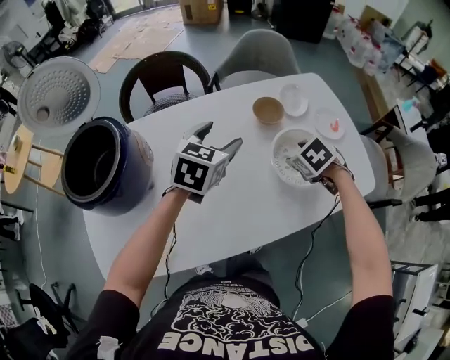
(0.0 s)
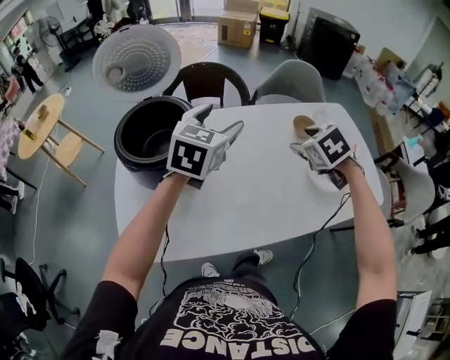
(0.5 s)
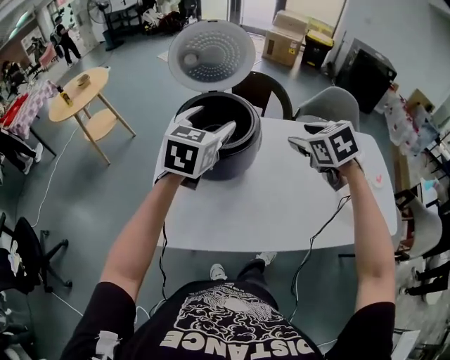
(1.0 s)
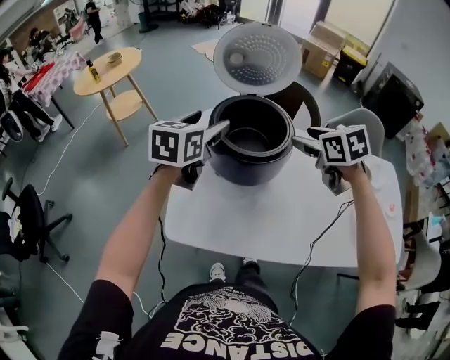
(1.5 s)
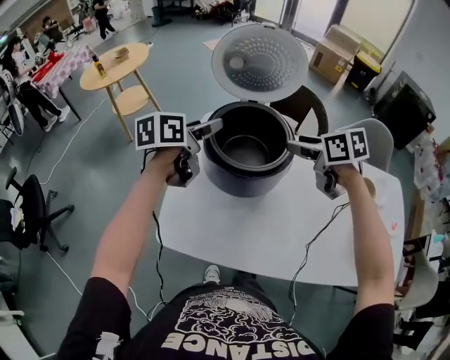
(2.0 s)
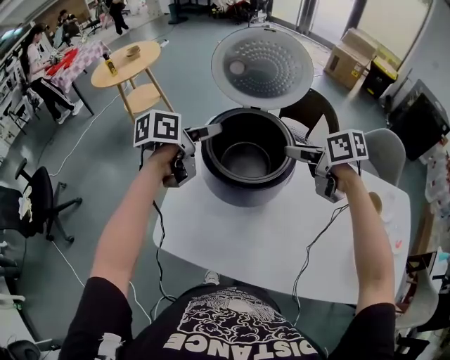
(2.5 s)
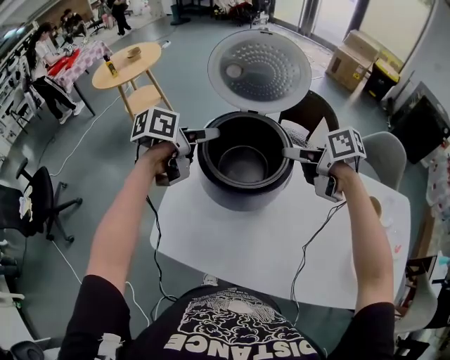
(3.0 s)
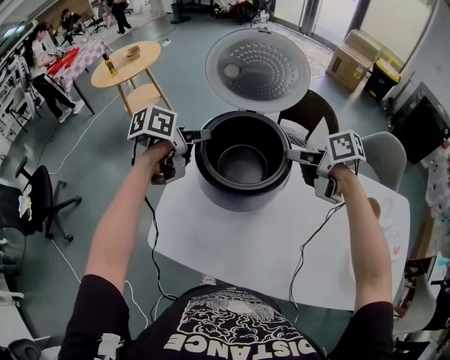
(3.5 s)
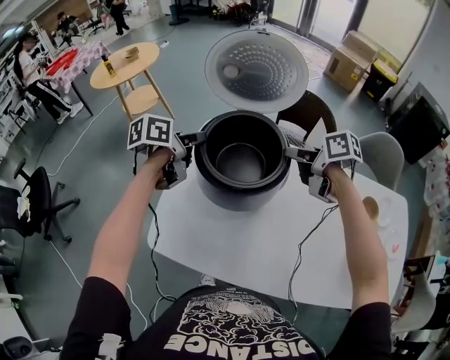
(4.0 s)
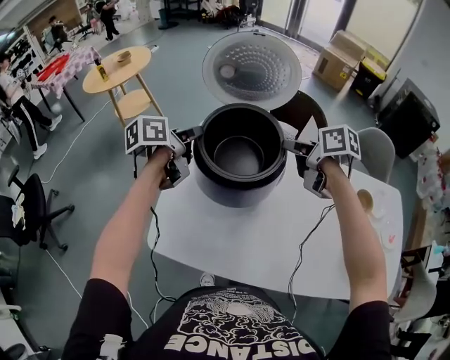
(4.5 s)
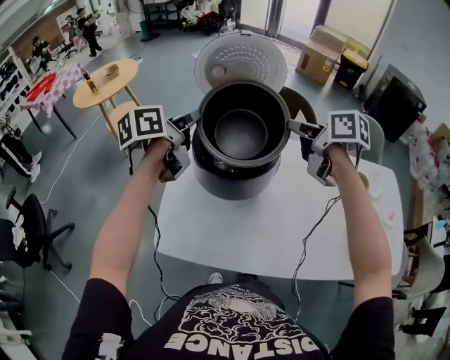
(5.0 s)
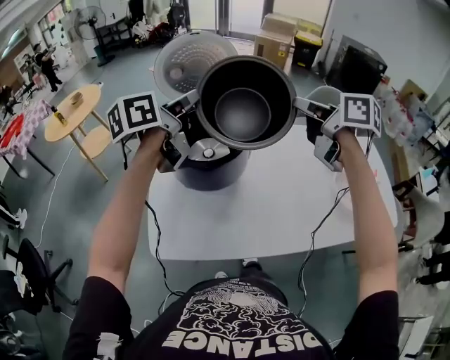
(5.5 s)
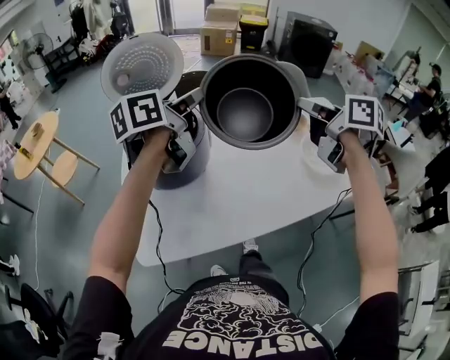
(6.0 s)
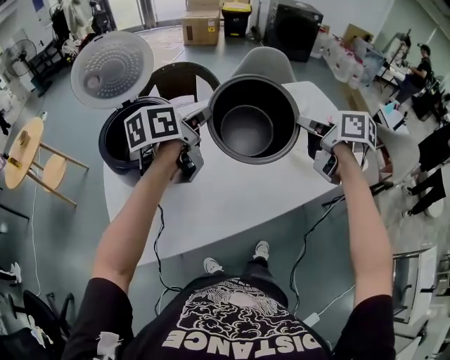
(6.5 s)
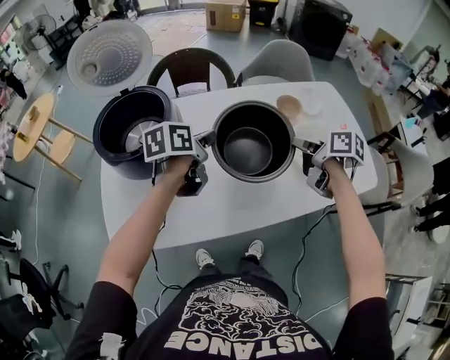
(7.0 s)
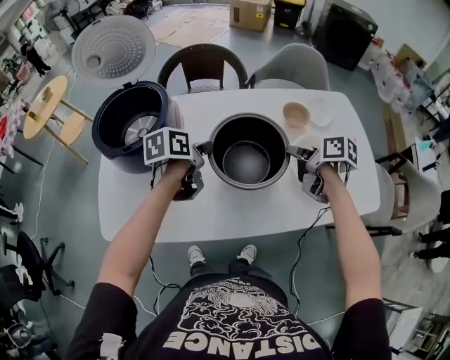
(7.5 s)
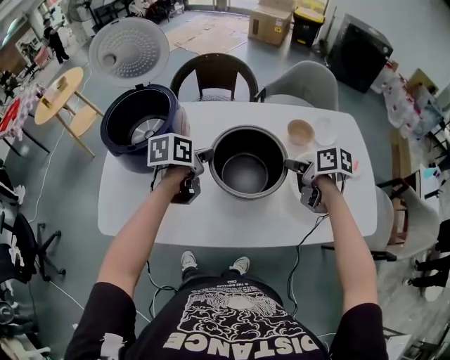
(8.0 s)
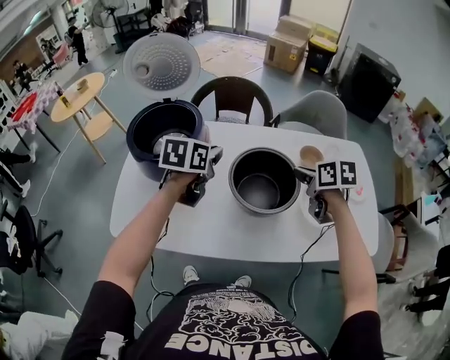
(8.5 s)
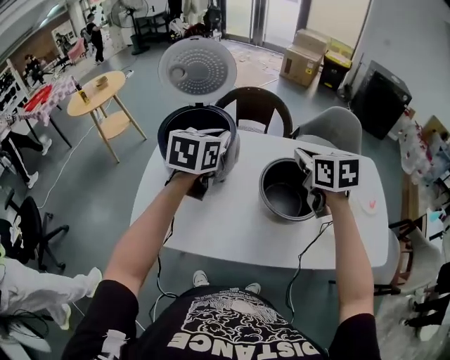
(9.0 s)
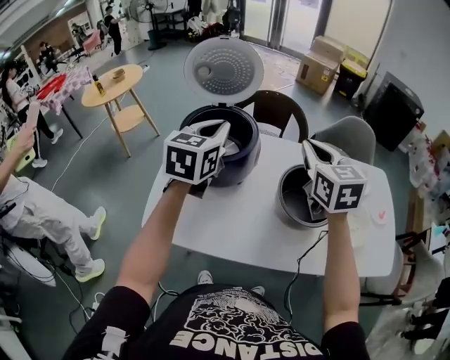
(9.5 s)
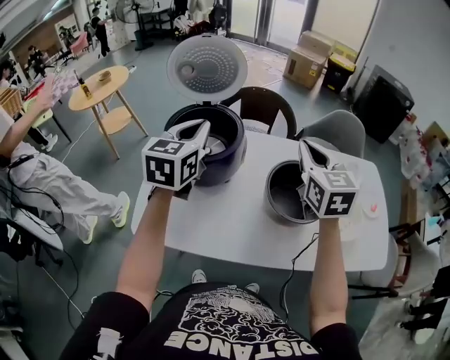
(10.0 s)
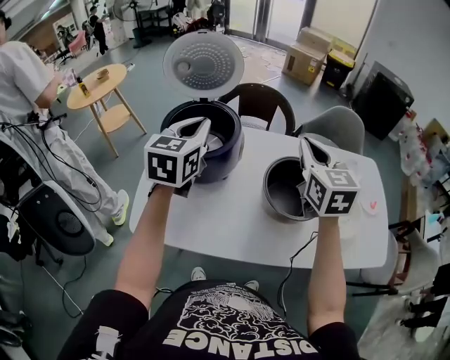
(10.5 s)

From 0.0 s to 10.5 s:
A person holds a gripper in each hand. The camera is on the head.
From 0.0 s to 2.0 s: Both grippers are carried about 60 cm. The right gripper points its fingers approximately 30 degrees further upward. The left gripper twists some 50 degrees counterclockwise, seen from behind.
From 2.0 s to 4.0 s: The left gripper ends up about 5 cm from where it was, and closes; the right gripper ends up roughly 5 cm from where it was, rotates about 20 degrees, and closes its fingers.
From 4.0 s to 6.5 s: The left gripper changes place by approximately 35 cm, and turns by about 30 degrees, while the right gripper moves roughly 15 cm upward and comes back, and rotates some 50 degrees.
From 6.5 s to 8.5 s: The right gripper is displaced forward and downward by roughly 15 cm, and changes its angle by approximately 40 degrees. Meanwhile the left gripper moves downward, roughly 5 cm, and changes its angle by roughly 30 degrees.
From 8.5 s to 10.5 s: Both grippers move to the left and upward, some 25 cm. The right gripper rotates about 40 degrees, while the left gripper changes its angle by roughly 30 degrees.

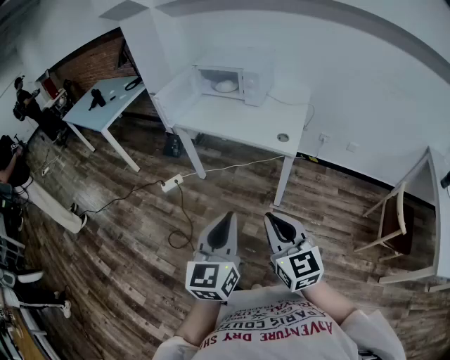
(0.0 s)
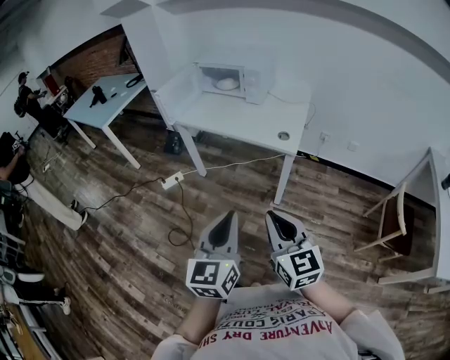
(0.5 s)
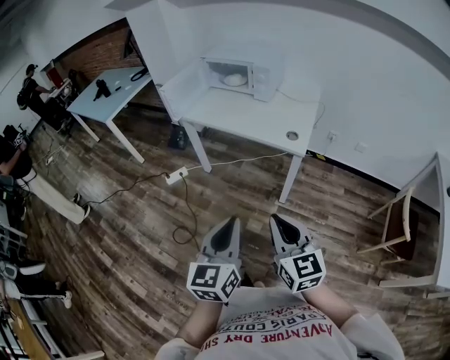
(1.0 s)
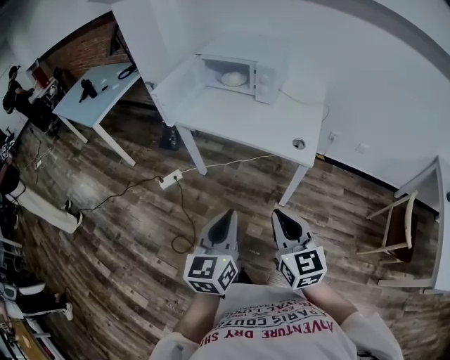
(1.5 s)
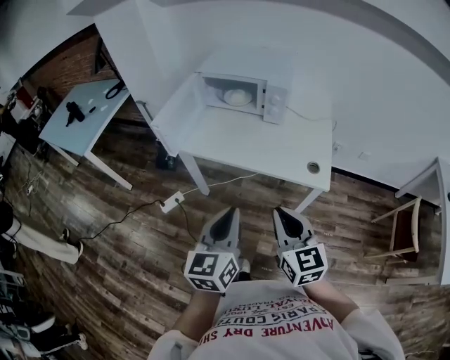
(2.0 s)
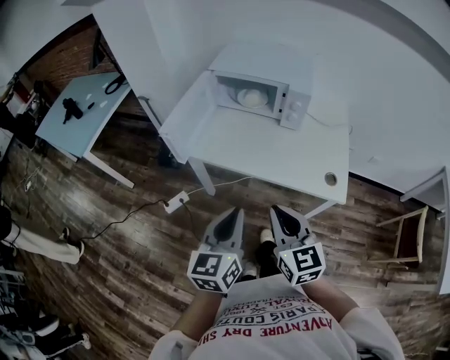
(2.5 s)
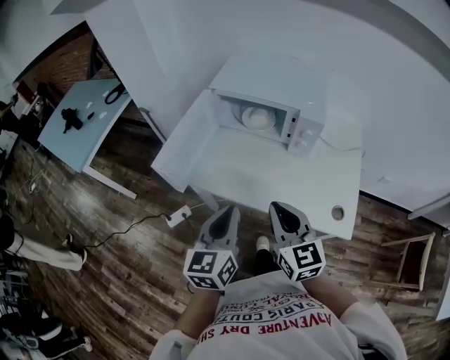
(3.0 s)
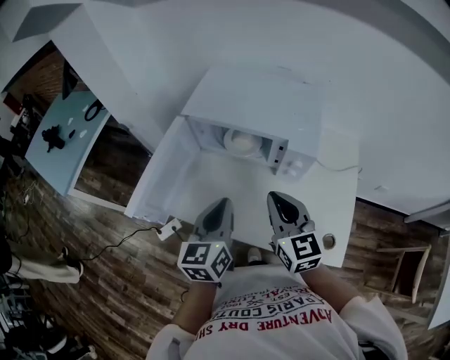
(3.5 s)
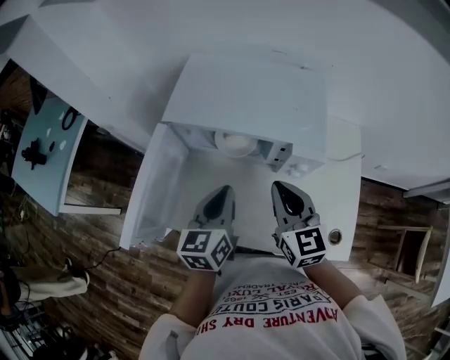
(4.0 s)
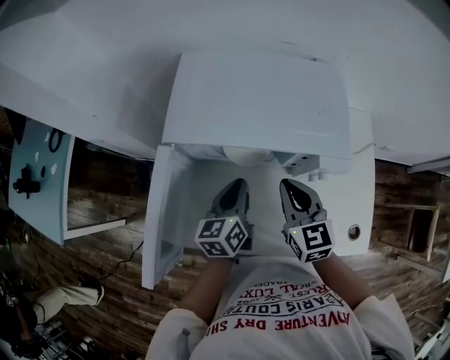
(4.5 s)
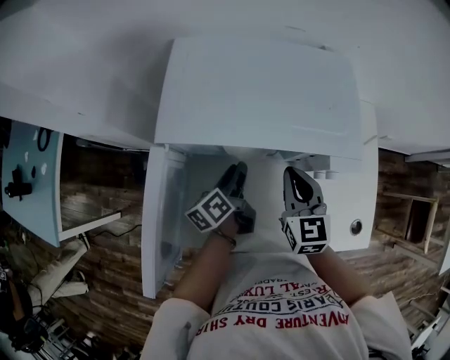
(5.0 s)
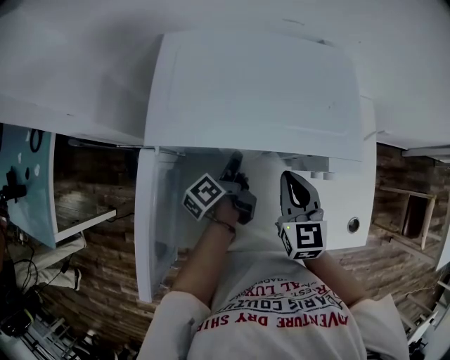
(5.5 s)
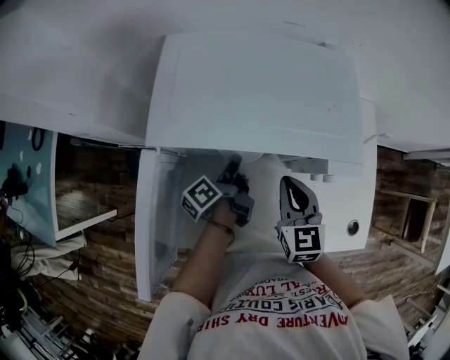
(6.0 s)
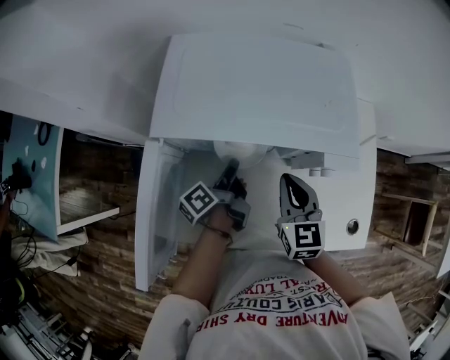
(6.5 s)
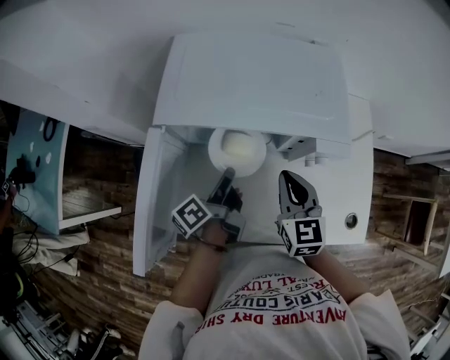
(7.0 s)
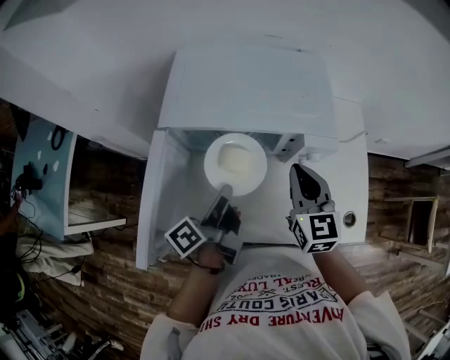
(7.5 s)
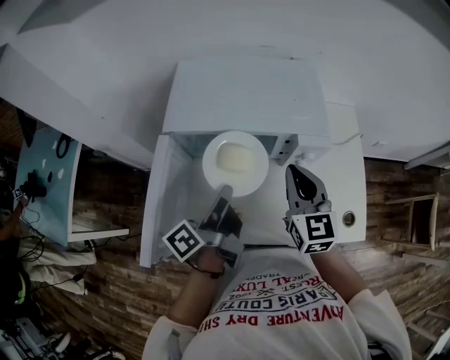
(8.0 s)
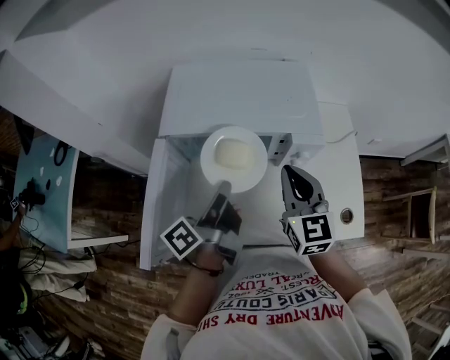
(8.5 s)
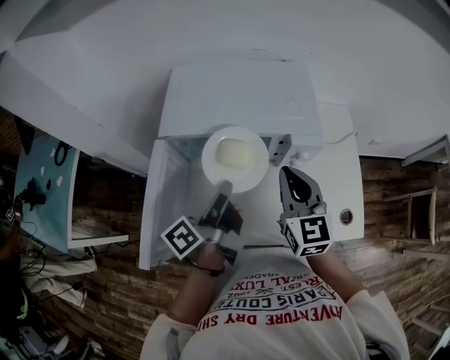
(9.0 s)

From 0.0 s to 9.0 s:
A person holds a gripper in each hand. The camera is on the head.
From 0.0 s to 2.0 s: The left gripper heads forward and to the left, covering roughly 35 cm. The right gripper heads forward, covering roughly 30 cm.
From 2.0 s to 4.5 s: Both grippers are carried forward, roughly 50 cm. The left gripper swivels roughly 20 degrees.
From 4.5 s to 7.0 s: The left gripper reaches roughly 10 cm downward, then returns, rotates around the line of its fingers by roughly 50 degrees, counterclockwise from behind, and opens and closes again.
From 7.0 s to 9.0 s: The grippers both shift upward by roughly 10 cm.

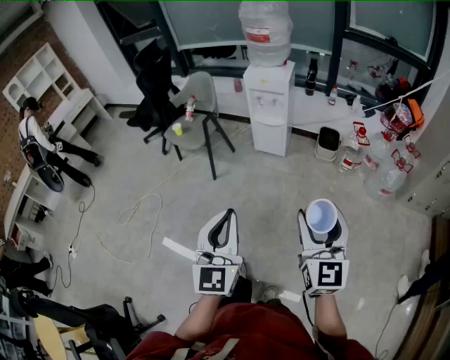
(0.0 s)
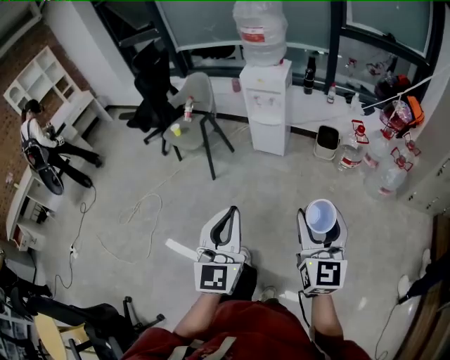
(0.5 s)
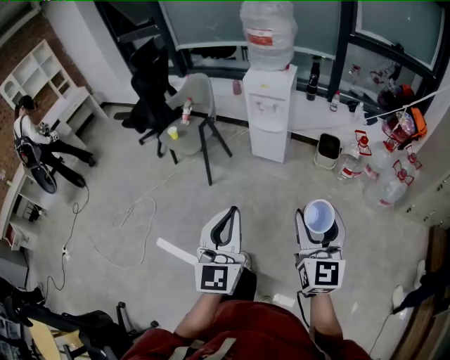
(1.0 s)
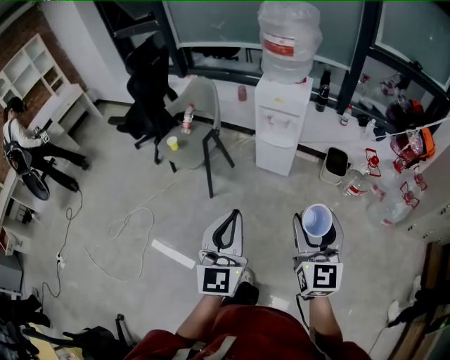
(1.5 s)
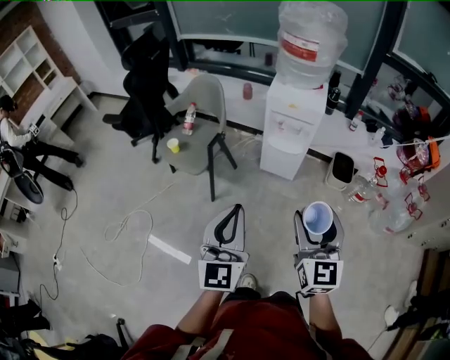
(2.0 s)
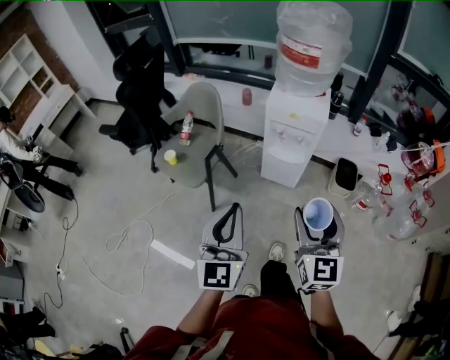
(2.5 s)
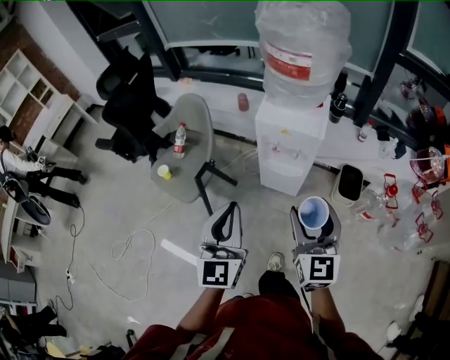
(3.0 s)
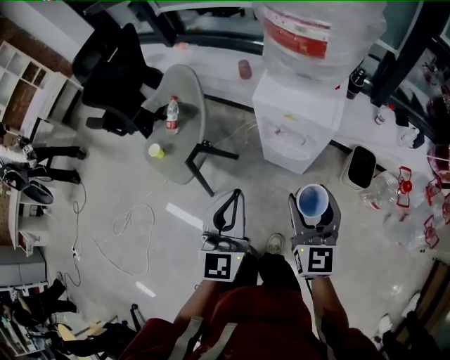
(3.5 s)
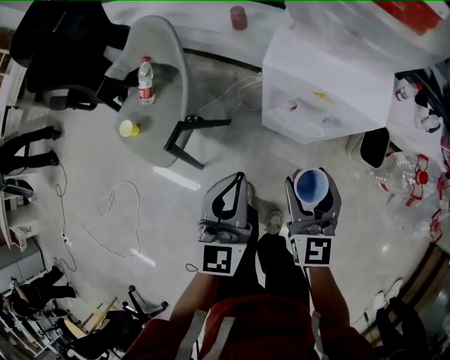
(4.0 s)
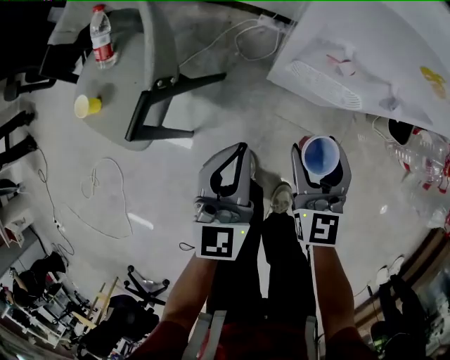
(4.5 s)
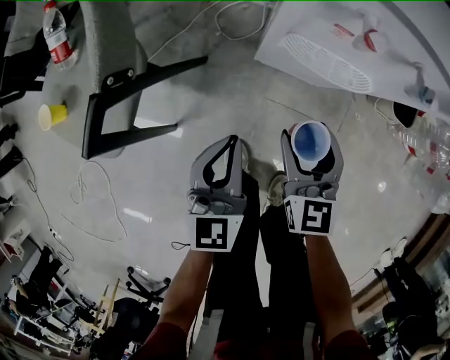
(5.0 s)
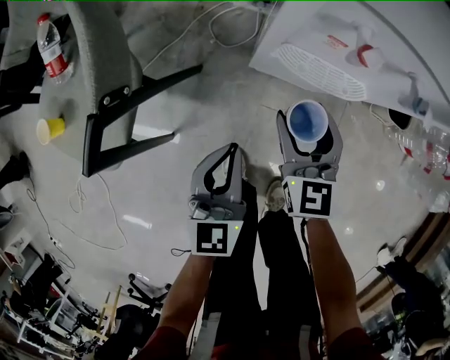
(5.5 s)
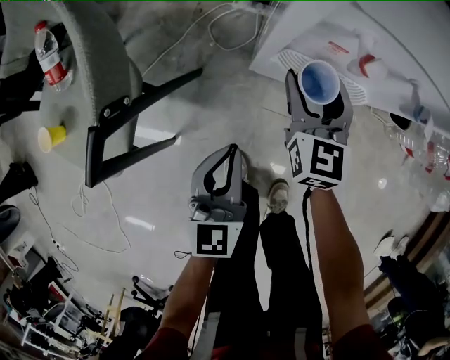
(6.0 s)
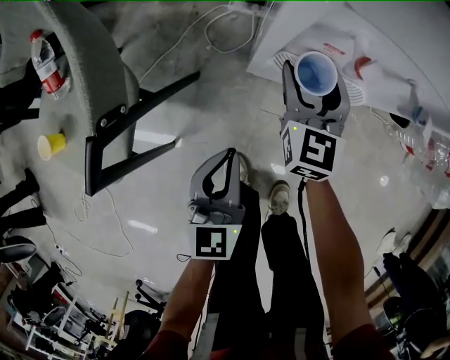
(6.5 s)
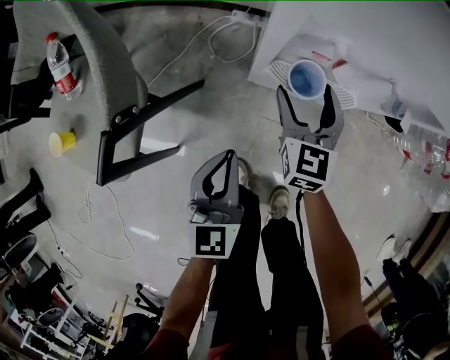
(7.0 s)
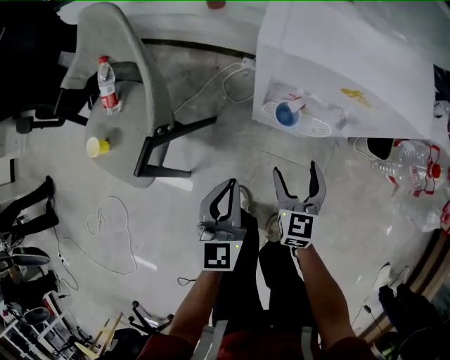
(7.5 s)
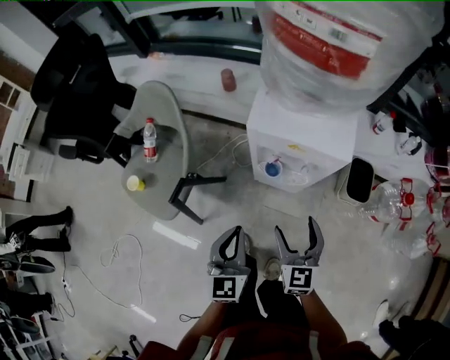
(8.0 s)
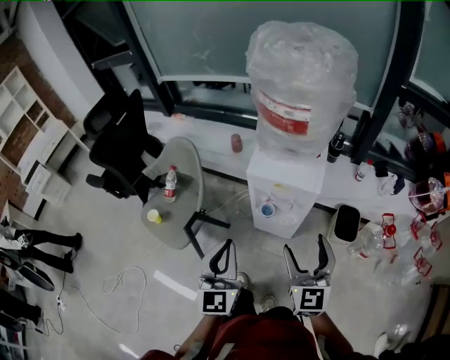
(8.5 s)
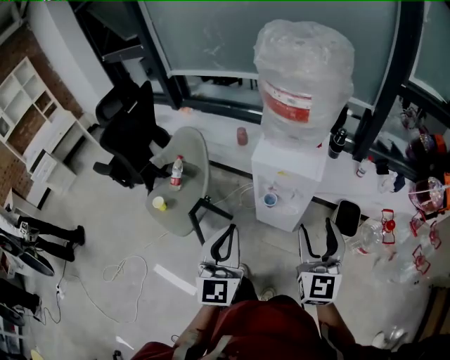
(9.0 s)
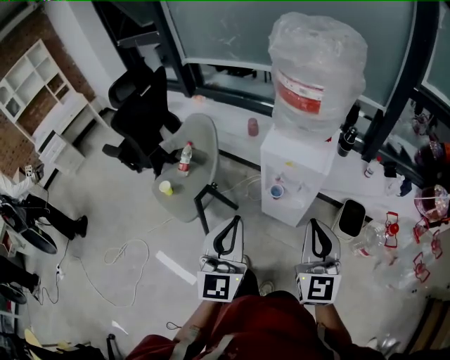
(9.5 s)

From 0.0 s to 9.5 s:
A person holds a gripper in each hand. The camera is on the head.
From 0.0 s to 2.0 s: The right gripper goes roughly 35 cm forward and to the left; the left gripper heads forward, covering roughly 35 cm.
From 2.0 s to 4.0 s: The grippers both shift forward and downward by about 40 cm.
From 4.0 s to 5.5 s: Both grippers travel together downward, roughly 30 cm.
From 5.5 s to 7.5 s: The left gripper goes approximately 10 cm upward. The right gripper travels to the right by approximately 5 cm, and goes forward and returns, approximately 10 cm each way.
From 7.5 s to 9.5 s: The right gripper travels upward by roughly 50 cm, swivels approximately 30 degrees, and closes. The left gripper travels upward and backward by roughly 50 cm, and rotates roughly 30 degrees.
